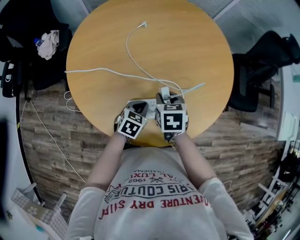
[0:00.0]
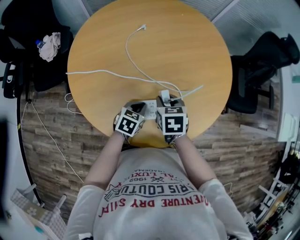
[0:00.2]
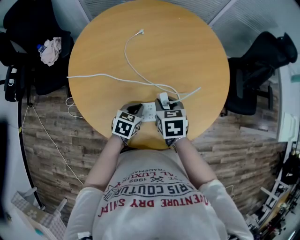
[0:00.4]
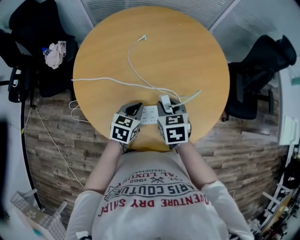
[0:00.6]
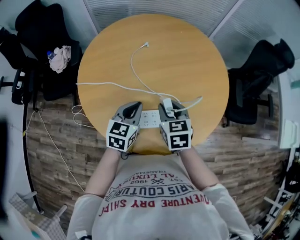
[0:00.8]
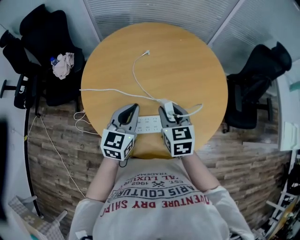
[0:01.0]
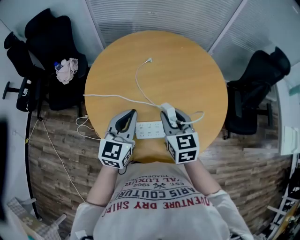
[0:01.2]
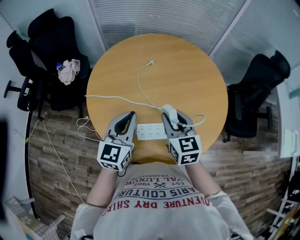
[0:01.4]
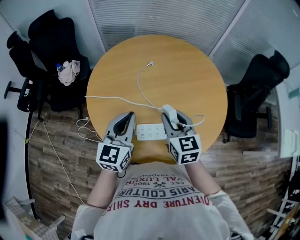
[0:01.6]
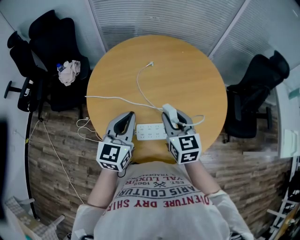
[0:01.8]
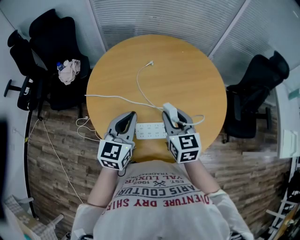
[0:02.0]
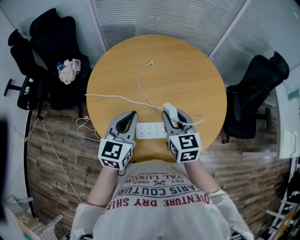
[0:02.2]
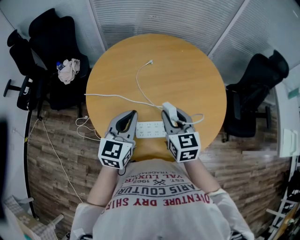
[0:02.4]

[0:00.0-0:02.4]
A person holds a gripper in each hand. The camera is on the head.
0:00.0 to 0:01.2: The right gripper moves upward, approximately 15 cm, and angles its fingers upward, by roughly 30 degrees; the left gripper moves upward, roughly 25 cm, and angles its fingers upward, by about 40 degrees.
0:01.2 to 0:02.4: The grippers stay close to where they were, moving slightly.

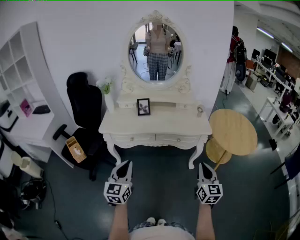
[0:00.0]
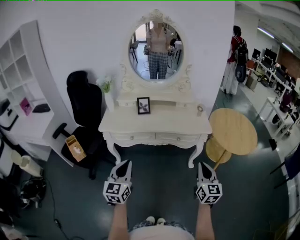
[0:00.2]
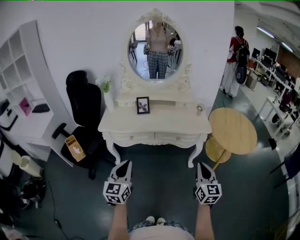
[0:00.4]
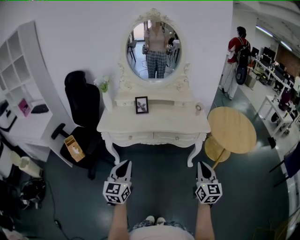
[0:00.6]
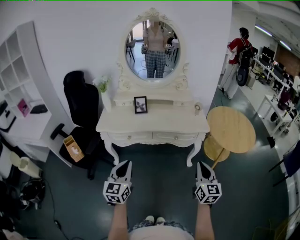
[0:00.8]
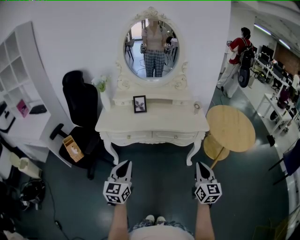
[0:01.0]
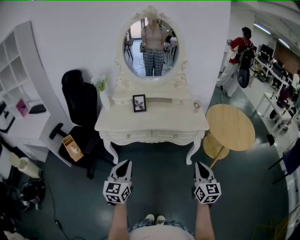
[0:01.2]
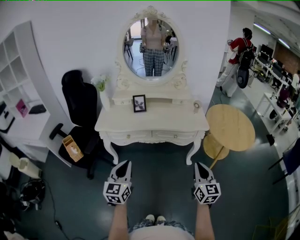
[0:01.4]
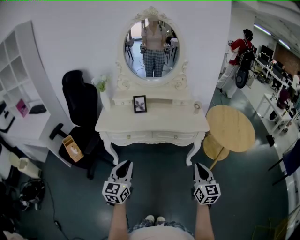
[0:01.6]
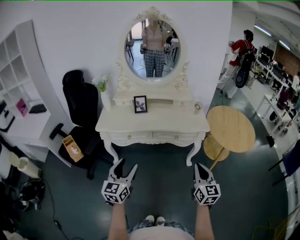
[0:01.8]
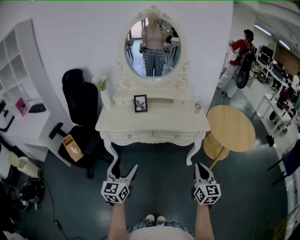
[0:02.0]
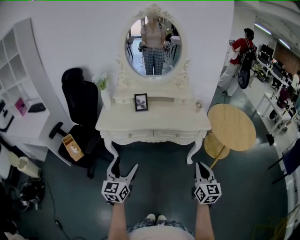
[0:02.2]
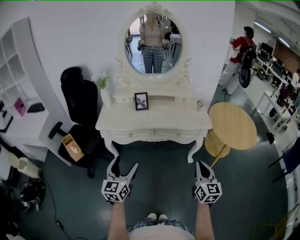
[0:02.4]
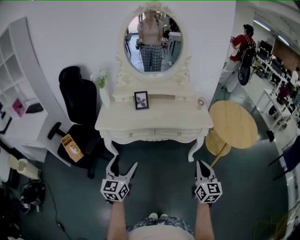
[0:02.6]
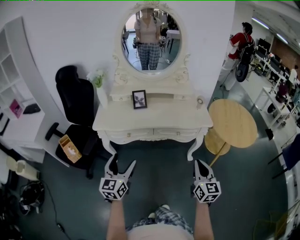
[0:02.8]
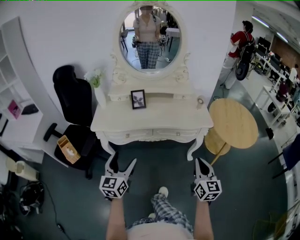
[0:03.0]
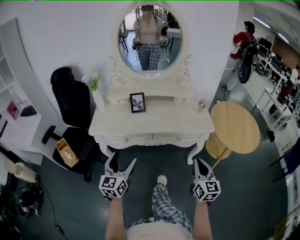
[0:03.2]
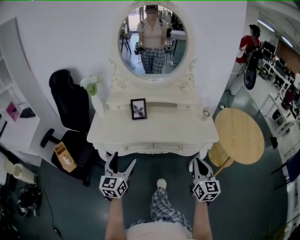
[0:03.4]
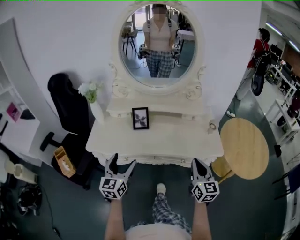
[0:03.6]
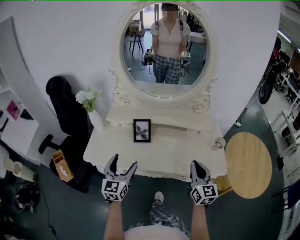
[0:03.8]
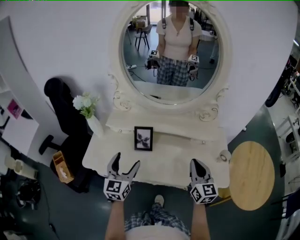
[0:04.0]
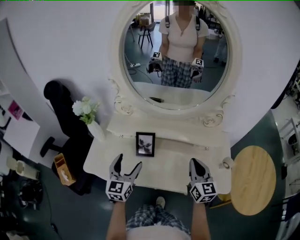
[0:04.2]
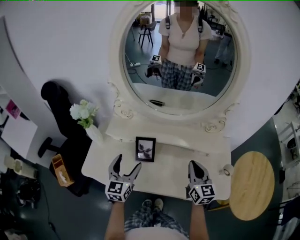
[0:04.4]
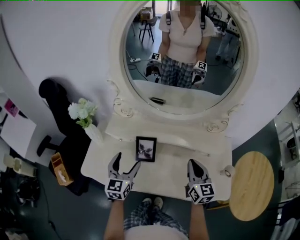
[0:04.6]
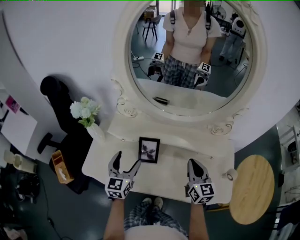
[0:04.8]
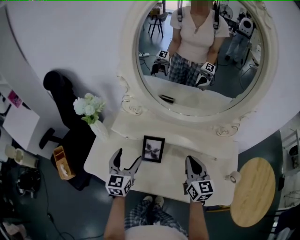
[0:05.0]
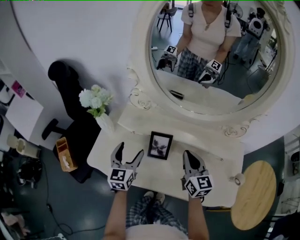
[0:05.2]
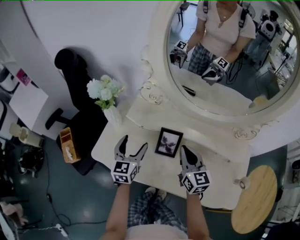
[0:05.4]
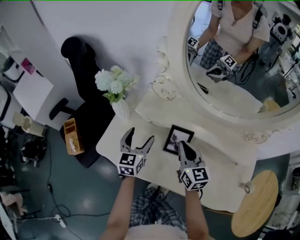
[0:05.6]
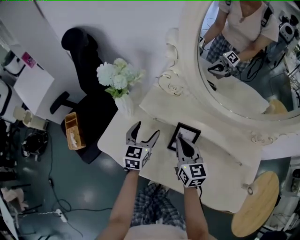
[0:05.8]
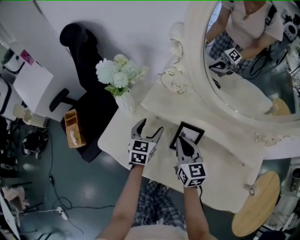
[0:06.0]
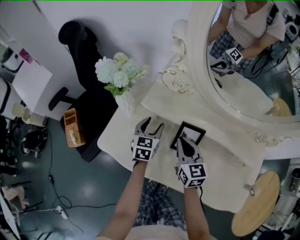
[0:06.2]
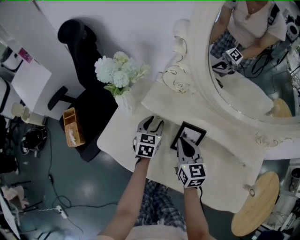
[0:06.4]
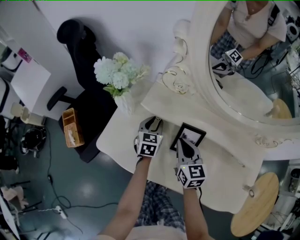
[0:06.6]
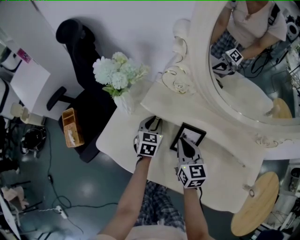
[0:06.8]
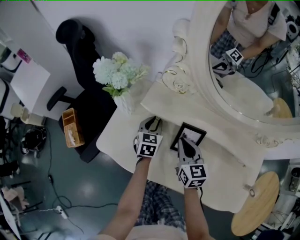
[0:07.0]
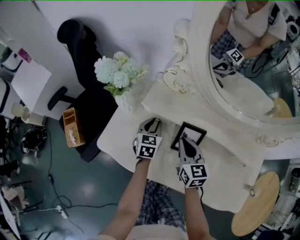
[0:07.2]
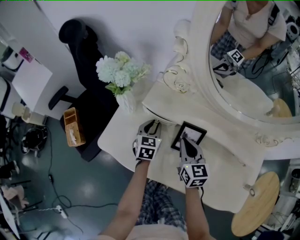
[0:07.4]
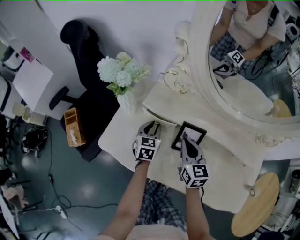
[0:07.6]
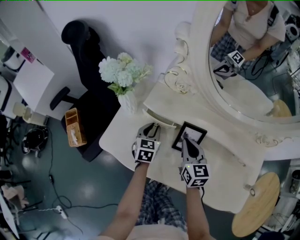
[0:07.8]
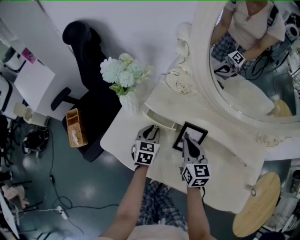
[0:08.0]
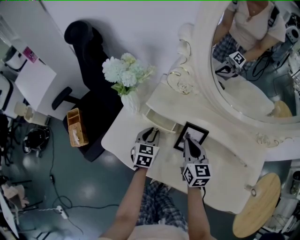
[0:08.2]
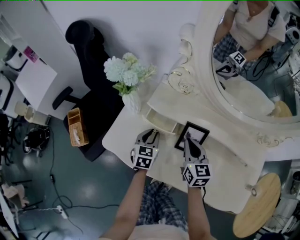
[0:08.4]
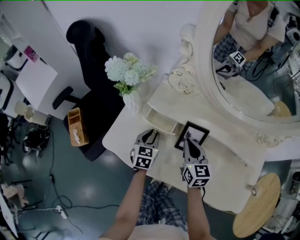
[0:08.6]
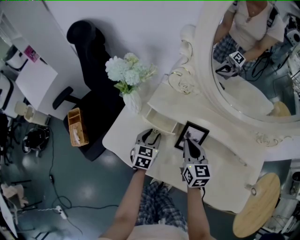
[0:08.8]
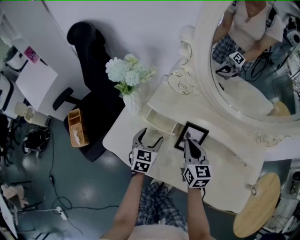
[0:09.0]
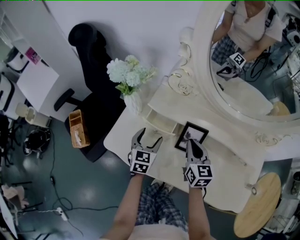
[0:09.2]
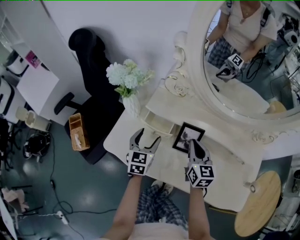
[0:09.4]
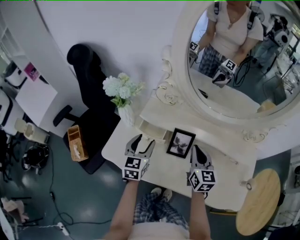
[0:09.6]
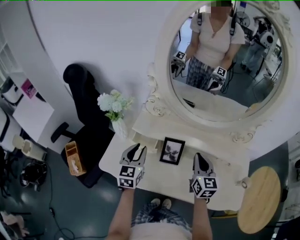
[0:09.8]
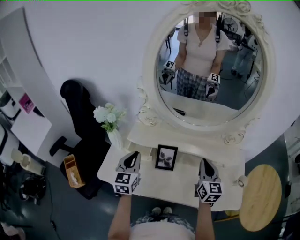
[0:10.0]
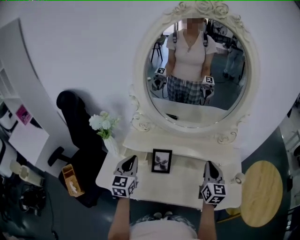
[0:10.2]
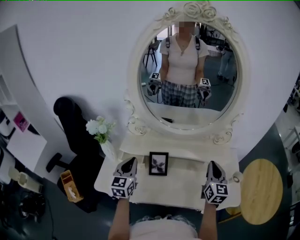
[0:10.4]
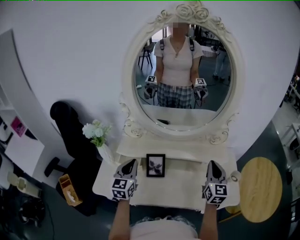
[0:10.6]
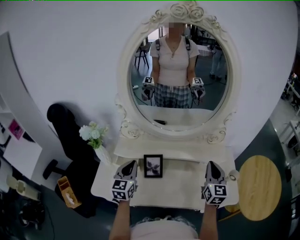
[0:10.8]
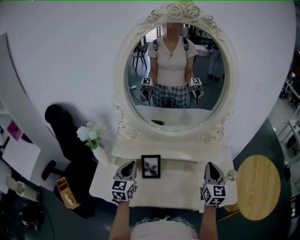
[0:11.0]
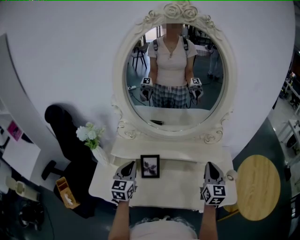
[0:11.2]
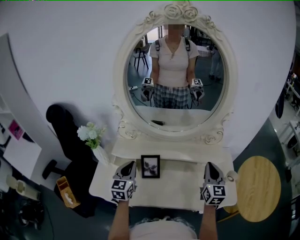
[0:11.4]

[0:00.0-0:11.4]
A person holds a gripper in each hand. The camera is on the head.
0:00.0 to 0:01.4: The grippers stay close to where they were, moving slightly.
0:01.4 to 0:02.8: The right gripper ends up some 5 cm from where it was. Meanwhile the left gripper goes roughly 5 cm forward and to the left, and opens up.
0:02.8 to 0:04.2: The pair of grippers is taken forward, about 50 cm.
0:04.2 to 0:05.6: The right gripper goes approximately 25 cm to the left and forward, and changes its angle by roughly 20 degrees. Meanwhile the left gripper goes approximately 20 cm forward, to the left and downward.
0:05.6 to 0:07.2: The left gripper heads downward and forward, covering about 10 cm, and closes up. Meanwhile the right gripper is displaced downward by about 5 cm.
0:07.2 to 0:08.6: The left gripper travels backward by approximately 5 cm.
0:08.6 to 0:10.0: The right gripper is displaced to the right, upward and backward by some 25 cm, and rotates roughly 30 degrees. The left gripper goes about 20 cm upward, swivels some 20 degrees, and opens, then closes once more.
0:10.0 to 0:11.4: The right gripper heads to the right, covering some 10 cm. Meanwhile the left gripper heads to the right, covering approximately 5 cm.

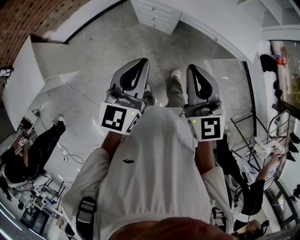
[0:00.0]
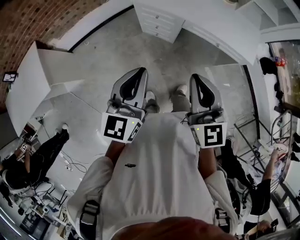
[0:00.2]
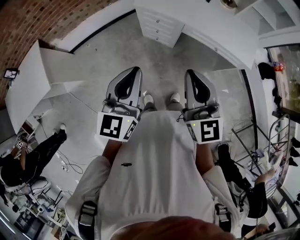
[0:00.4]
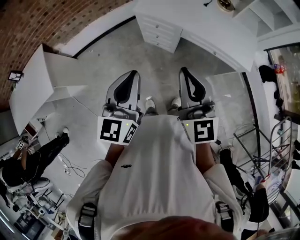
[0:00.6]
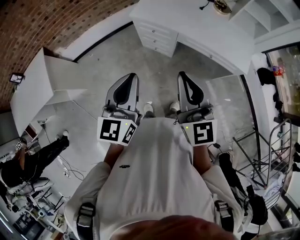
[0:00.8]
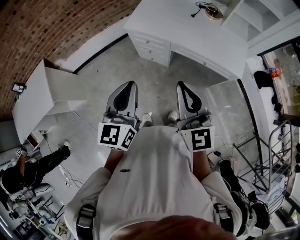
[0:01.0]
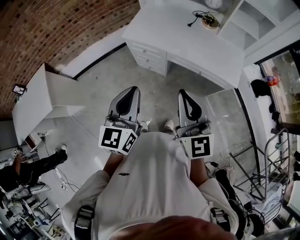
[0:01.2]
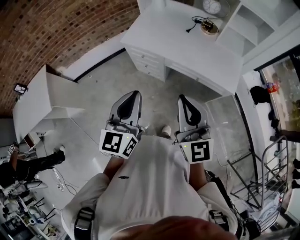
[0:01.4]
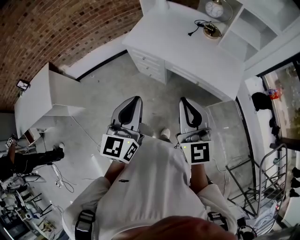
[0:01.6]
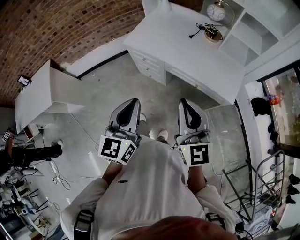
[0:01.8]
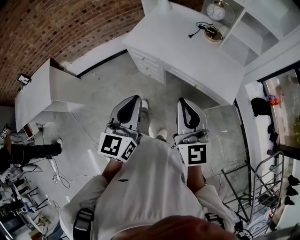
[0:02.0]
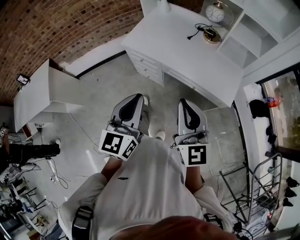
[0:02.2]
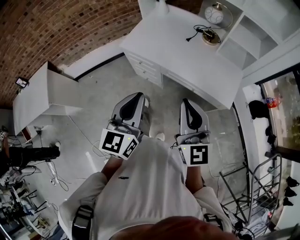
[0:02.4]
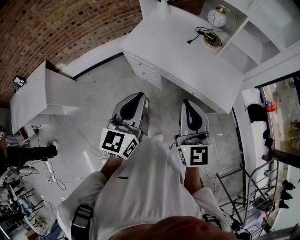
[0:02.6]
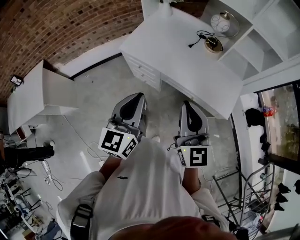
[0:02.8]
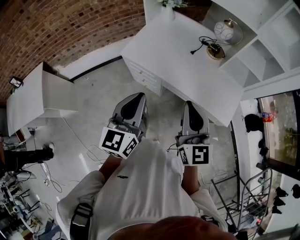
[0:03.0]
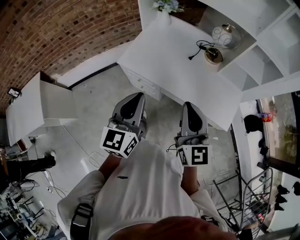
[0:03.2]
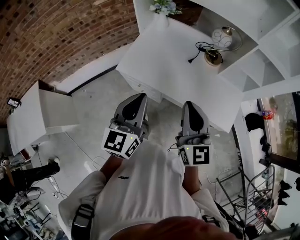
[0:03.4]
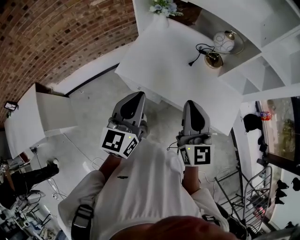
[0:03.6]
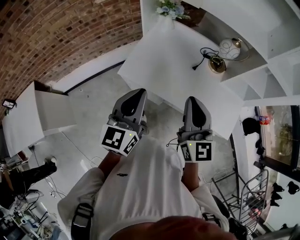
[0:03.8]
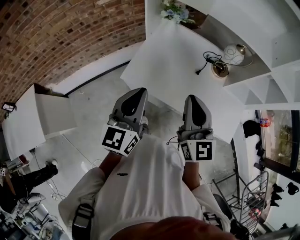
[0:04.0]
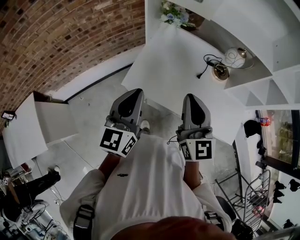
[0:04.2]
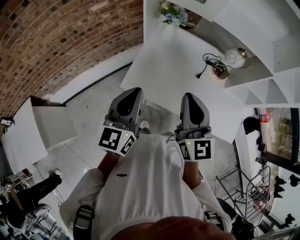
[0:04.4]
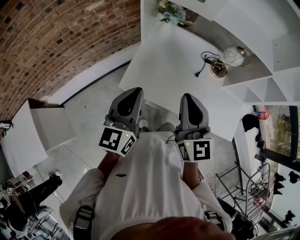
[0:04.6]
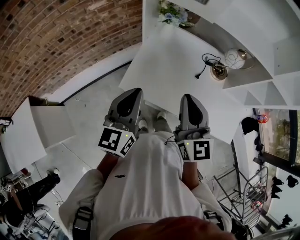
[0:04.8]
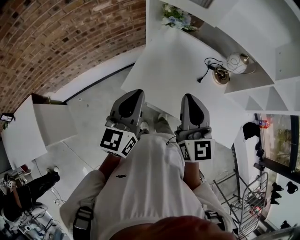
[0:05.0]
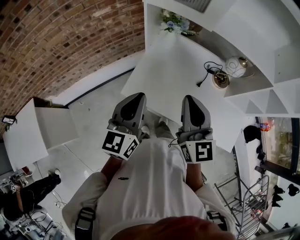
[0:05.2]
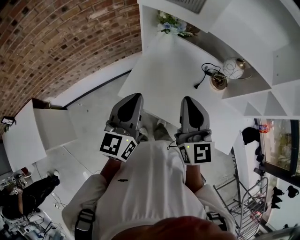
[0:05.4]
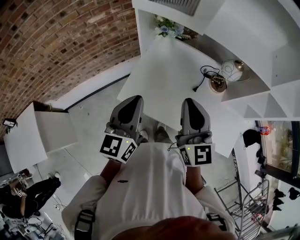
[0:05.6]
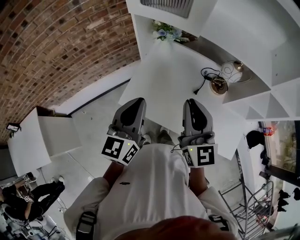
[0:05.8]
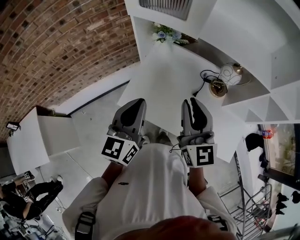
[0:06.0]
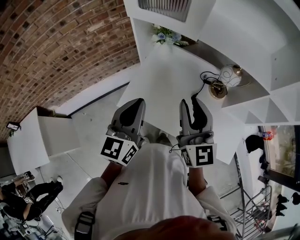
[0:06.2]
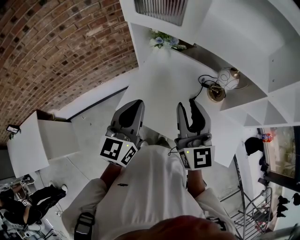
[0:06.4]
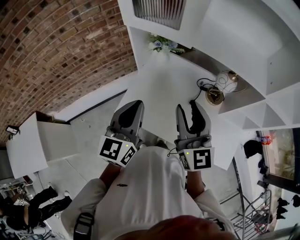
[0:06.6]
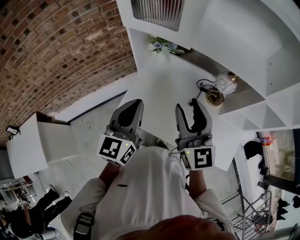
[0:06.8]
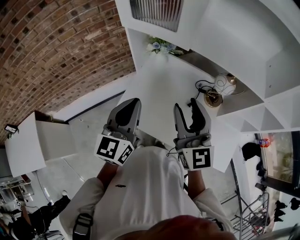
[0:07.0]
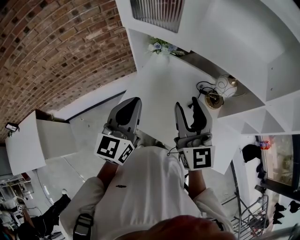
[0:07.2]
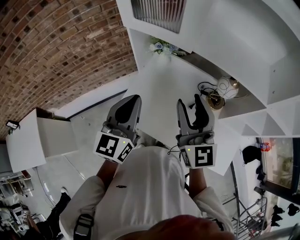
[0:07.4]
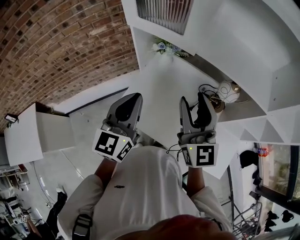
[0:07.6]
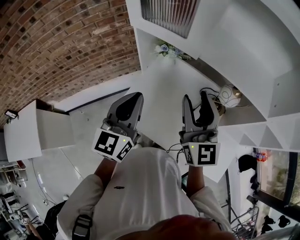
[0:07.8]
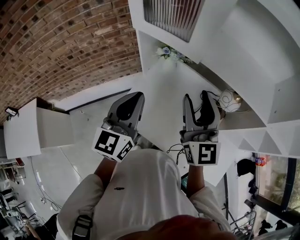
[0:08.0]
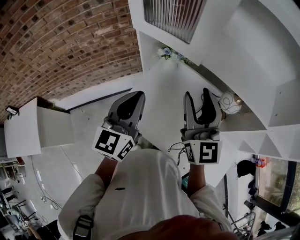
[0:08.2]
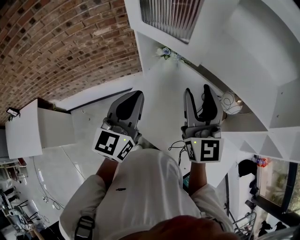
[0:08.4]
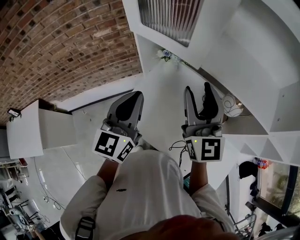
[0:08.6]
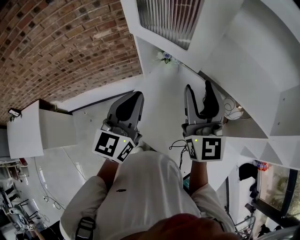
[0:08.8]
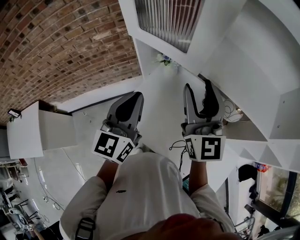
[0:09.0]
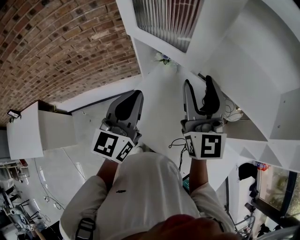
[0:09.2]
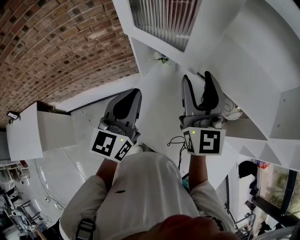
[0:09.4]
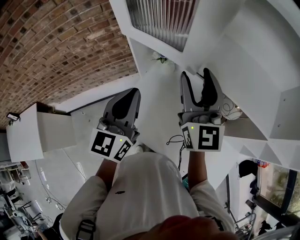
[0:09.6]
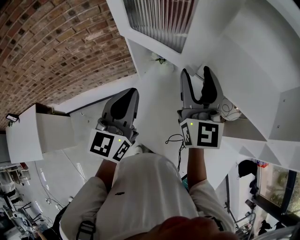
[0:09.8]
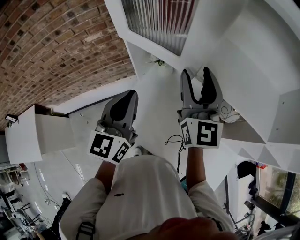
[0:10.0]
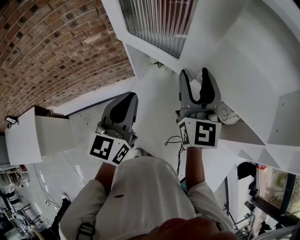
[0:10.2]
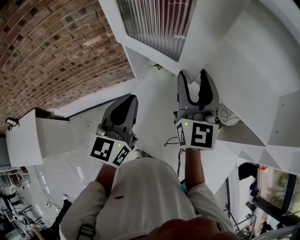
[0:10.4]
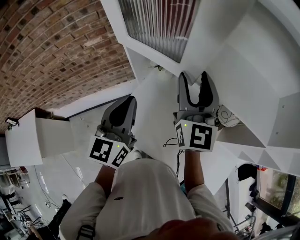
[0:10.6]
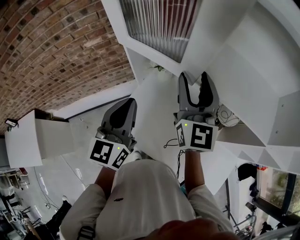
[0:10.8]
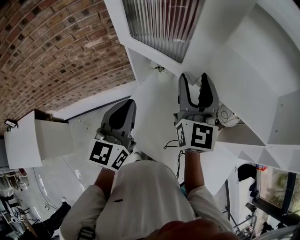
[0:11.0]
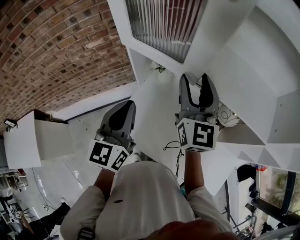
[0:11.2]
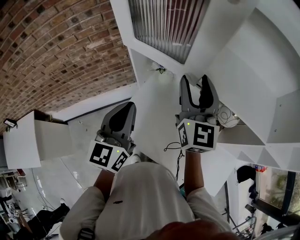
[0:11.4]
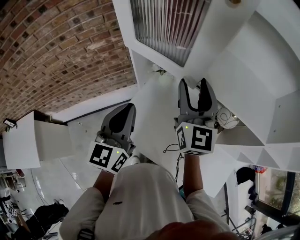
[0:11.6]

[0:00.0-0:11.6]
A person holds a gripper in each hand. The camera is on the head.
0:00.0 to 0:01.4: The two grippers go about 15 cm to the right.
0:01.4 to 0:02.8: The two grippers go some 10 cm forward and to the right.
0:02.8 to 0:04.4: Both grippers travel together forward and to the left, approximately 35 cm.
0:04.4 to 0:05.8: The left gripper heads to the right, covering approximately 5 cm. The right gripper goes some 10 cm to the right and forward.
0:05.8 to 0:07.2: The left gripper shifts by approximately 5 cm, while the right gripper changes place by some 5 cm, and opens up.
0:07.2 to 0:08.8: The right gripper moves forward, approximately 10 cm; the left gripper travels forward by about 10 cm.
0:08.8 to 0:10.2: The right gripper shifts approximately 10 cm forward.
0:10.2 to 0:11.6: There are only small adjustments of the grippers.
